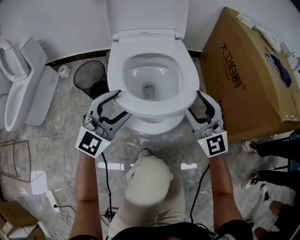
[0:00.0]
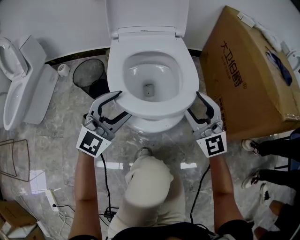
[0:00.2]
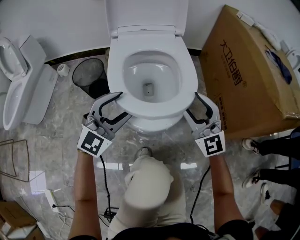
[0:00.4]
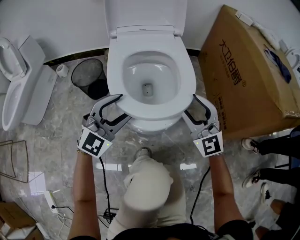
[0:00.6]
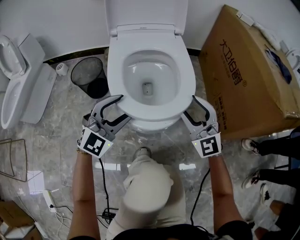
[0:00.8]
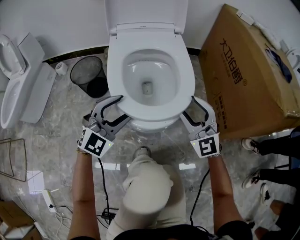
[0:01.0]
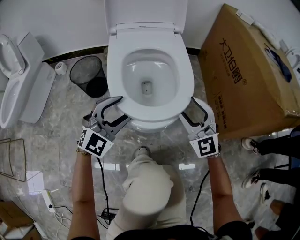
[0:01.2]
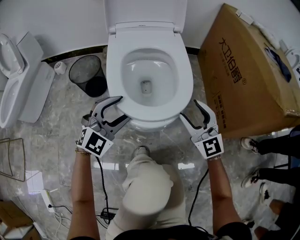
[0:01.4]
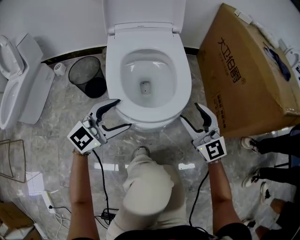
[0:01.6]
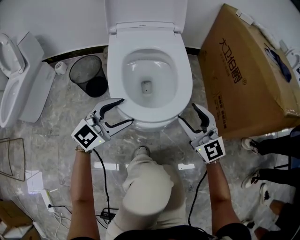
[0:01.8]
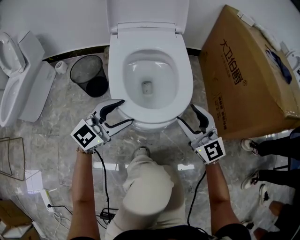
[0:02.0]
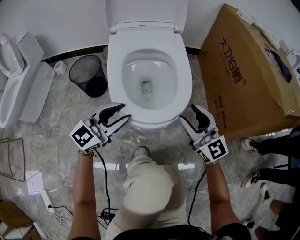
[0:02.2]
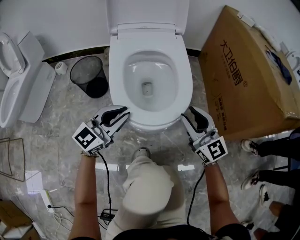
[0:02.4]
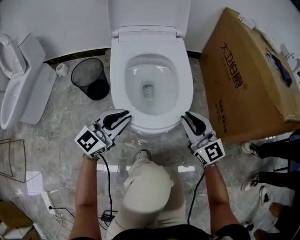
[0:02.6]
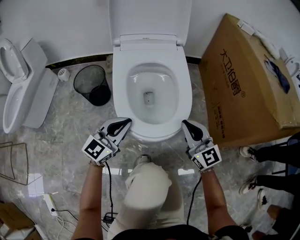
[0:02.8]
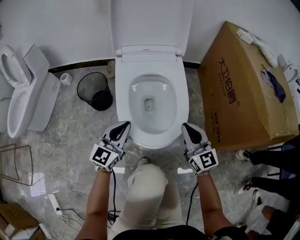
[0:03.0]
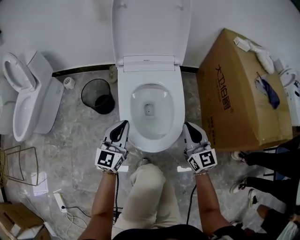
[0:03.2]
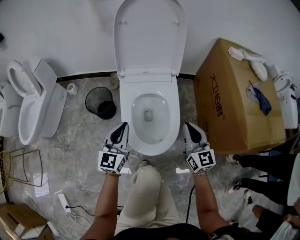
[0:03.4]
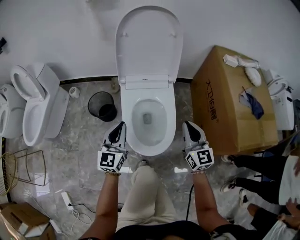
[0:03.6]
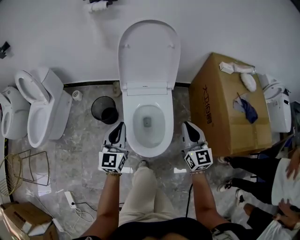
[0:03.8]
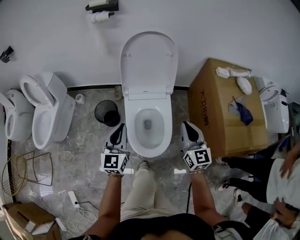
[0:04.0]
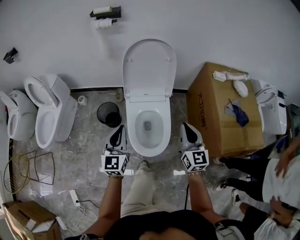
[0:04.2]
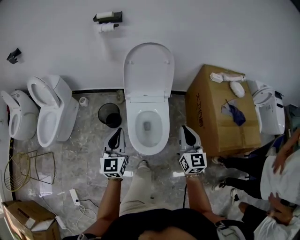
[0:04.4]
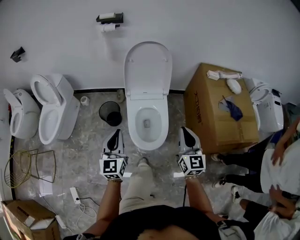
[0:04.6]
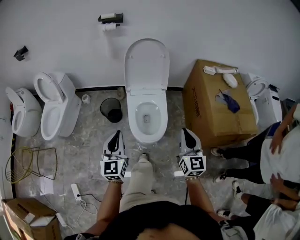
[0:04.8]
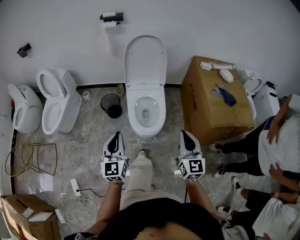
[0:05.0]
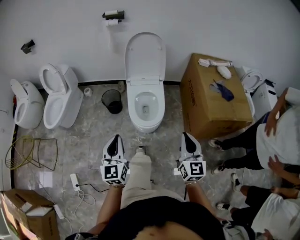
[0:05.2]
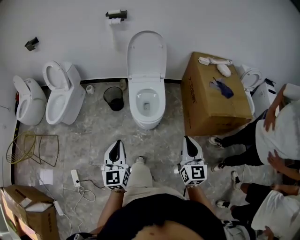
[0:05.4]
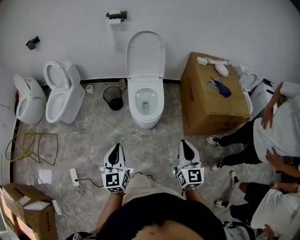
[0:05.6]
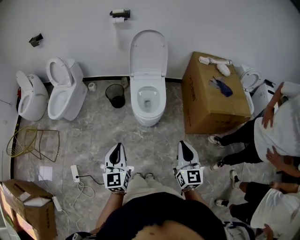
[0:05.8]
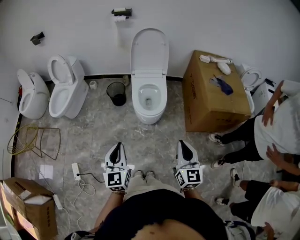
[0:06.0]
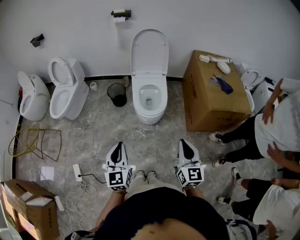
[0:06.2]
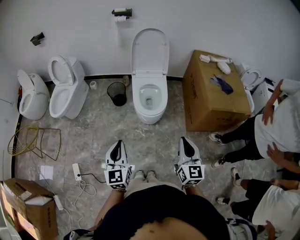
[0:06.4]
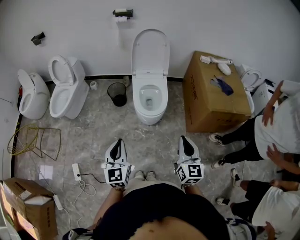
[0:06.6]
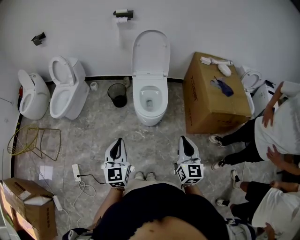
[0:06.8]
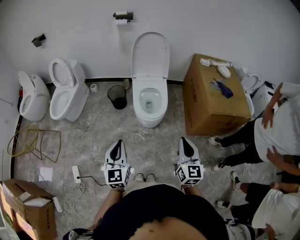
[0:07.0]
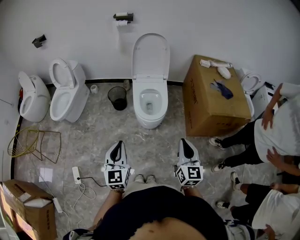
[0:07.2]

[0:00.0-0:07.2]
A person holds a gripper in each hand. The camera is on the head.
0:00.0 to 0:01.4: Both grippers travel together downward, some 10 cm.
0:01.4 to 0:02.8: The right gripper closes up. The left gripper changes its angle by roughly 40 degrees, and closes its fingers.
0:02.8 to 0:04.4: The two grippers go some 50 cm upward. The right gripper turns by approximately 20 degrees. Meanwhile the left gripper swivels some 40 degrees.
0:04.4 to 0:05.8: The two grippers travel together, backward, about 40 cm.
0:05.8 to 0:07.2: There are only small adjustments of the grippers.

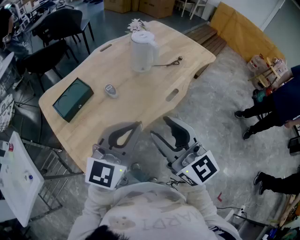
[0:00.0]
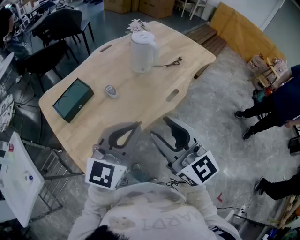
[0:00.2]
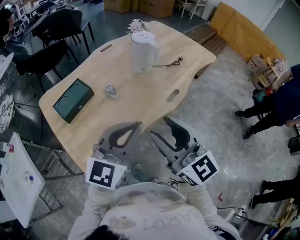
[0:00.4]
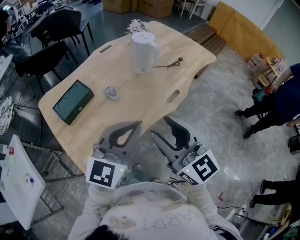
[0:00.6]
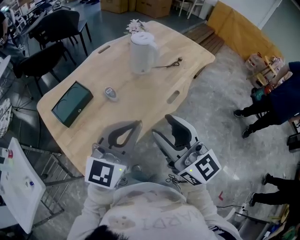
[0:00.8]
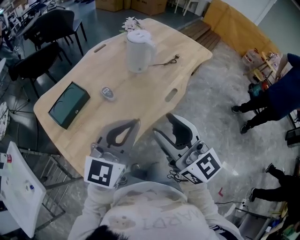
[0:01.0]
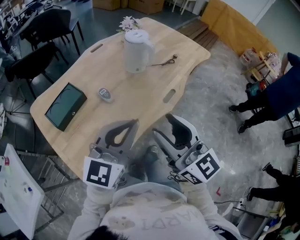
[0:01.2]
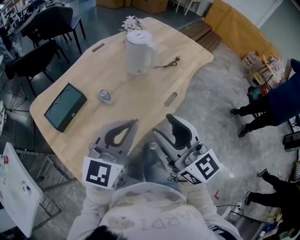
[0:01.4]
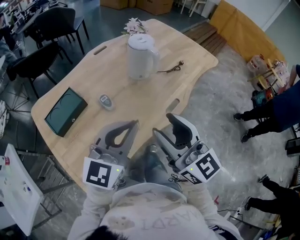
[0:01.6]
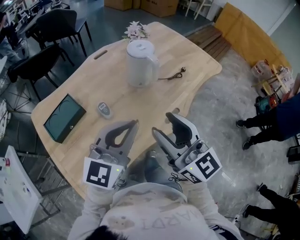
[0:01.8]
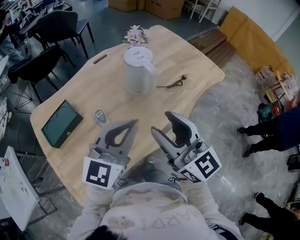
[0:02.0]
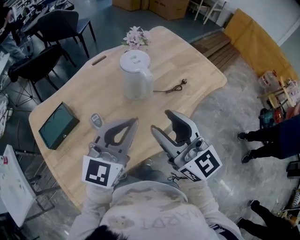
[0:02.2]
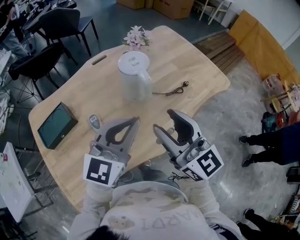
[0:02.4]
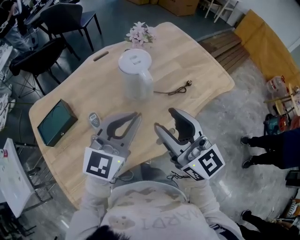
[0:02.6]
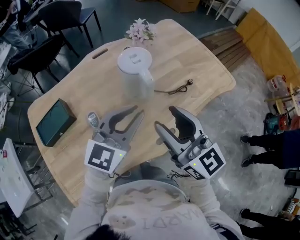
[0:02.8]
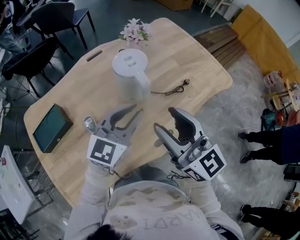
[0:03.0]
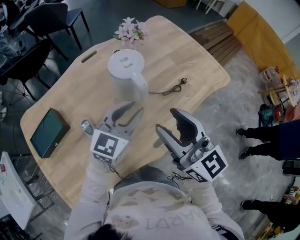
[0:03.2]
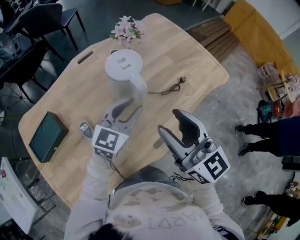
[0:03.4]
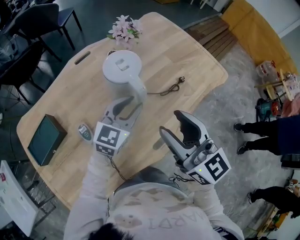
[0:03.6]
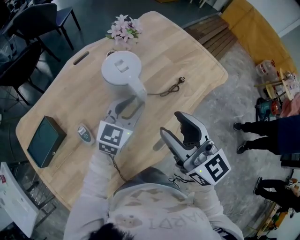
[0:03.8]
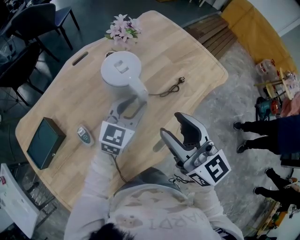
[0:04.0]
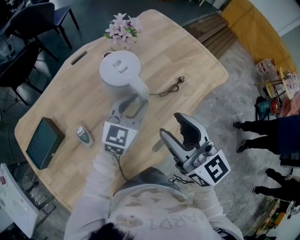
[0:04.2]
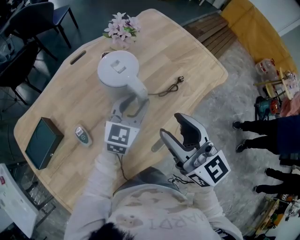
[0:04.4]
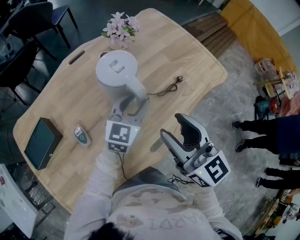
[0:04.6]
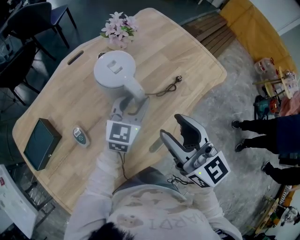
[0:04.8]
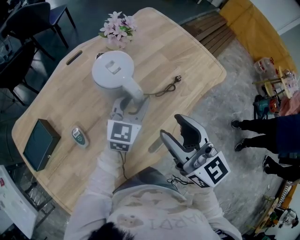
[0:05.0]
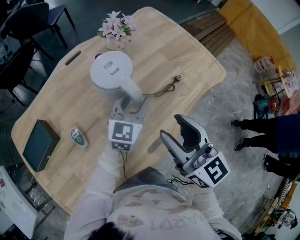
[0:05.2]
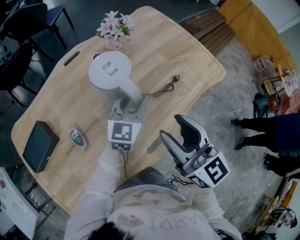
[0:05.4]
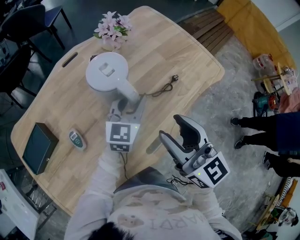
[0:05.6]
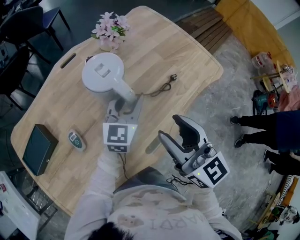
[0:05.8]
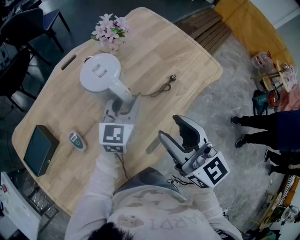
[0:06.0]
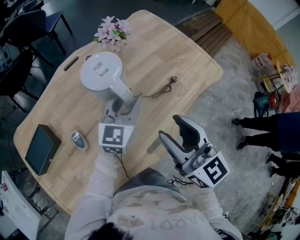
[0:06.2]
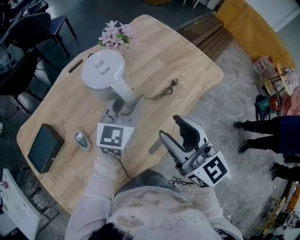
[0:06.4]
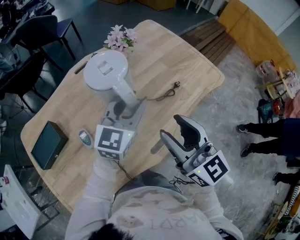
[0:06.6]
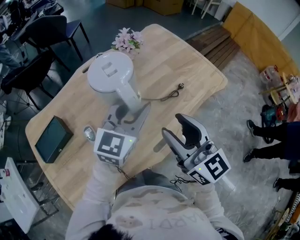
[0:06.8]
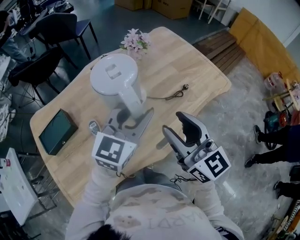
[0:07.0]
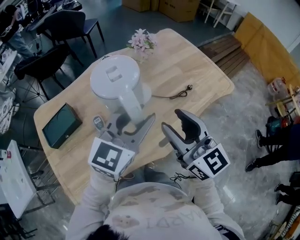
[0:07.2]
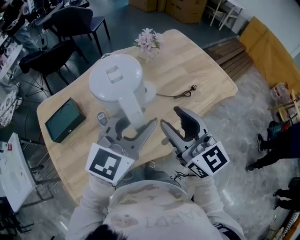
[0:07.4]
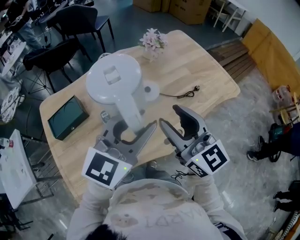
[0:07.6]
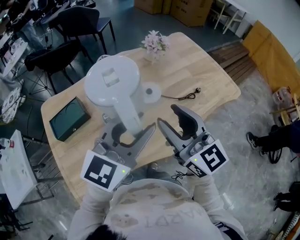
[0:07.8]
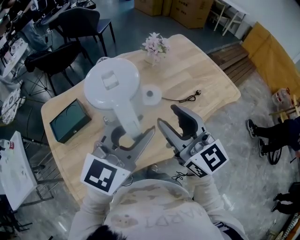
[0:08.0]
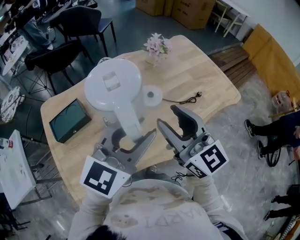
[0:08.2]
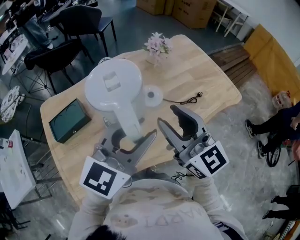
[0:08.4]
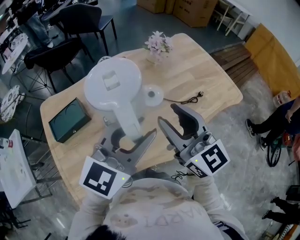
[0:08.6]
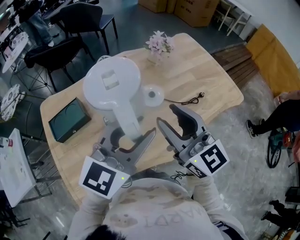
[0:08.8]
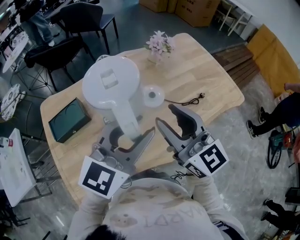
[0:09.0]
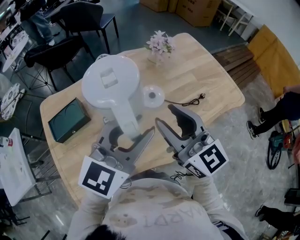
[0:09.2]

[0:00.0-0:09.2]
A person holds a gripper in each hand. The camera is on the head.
0:00.0 to 0:01.6: The two grippers go approximately 10 cm forward.
0:01.6 to 0:03.0: The grippers both shift forward and to the right by about 25 cm.
0:03.0 to 0:04.6: The left gripper is displaced forward, downward and to the right by about 15 cm; the right gripper moves roughly 5 cm.
0:04.6 to 0:06.2: The grippers move only a little.
0:06.2 to 0:07.6: The right gripper moves to the left, backward and upward, roughly 15 cm; the left gripper goes approximately 25 cm backward and upward.
0:07.6 to 0:09.2: The right gripper shifts by some 5 cm.

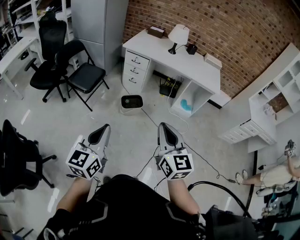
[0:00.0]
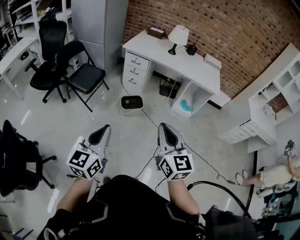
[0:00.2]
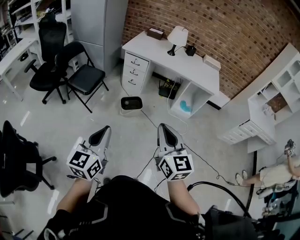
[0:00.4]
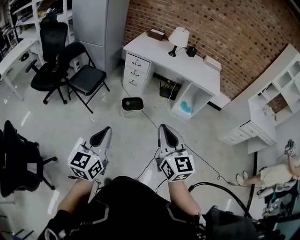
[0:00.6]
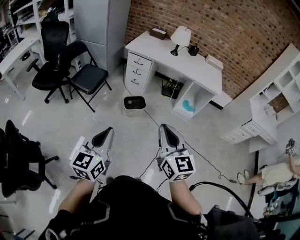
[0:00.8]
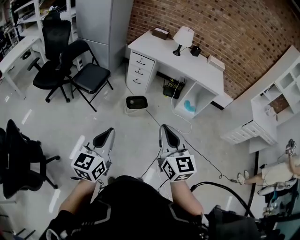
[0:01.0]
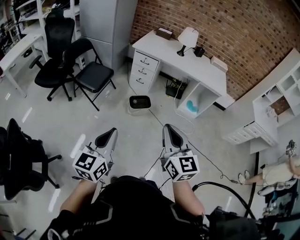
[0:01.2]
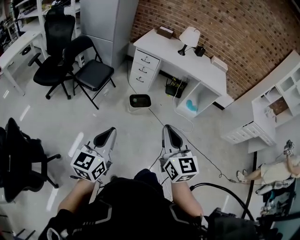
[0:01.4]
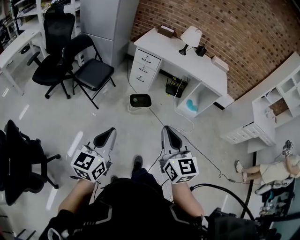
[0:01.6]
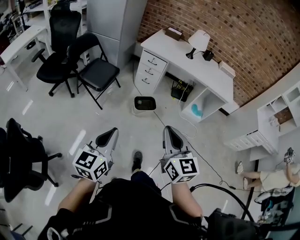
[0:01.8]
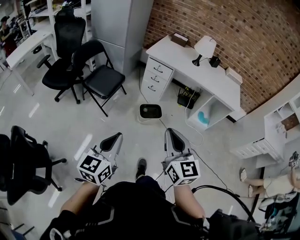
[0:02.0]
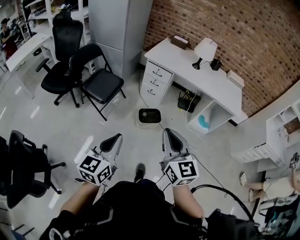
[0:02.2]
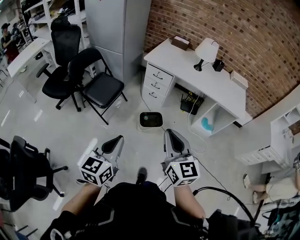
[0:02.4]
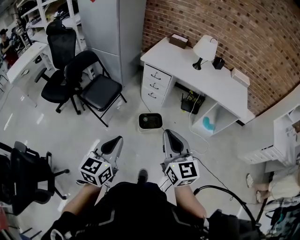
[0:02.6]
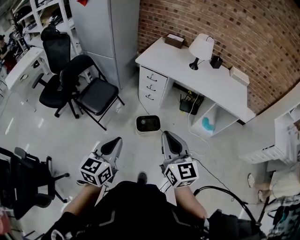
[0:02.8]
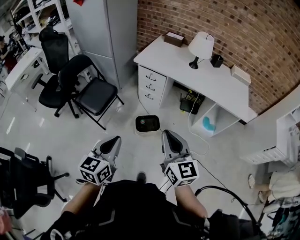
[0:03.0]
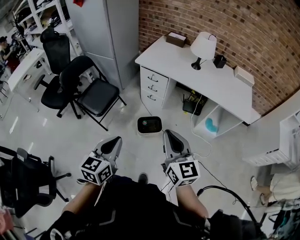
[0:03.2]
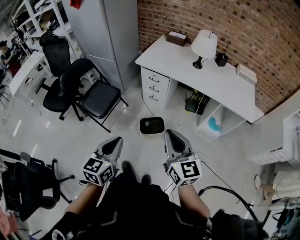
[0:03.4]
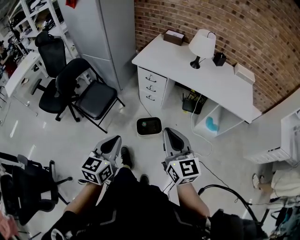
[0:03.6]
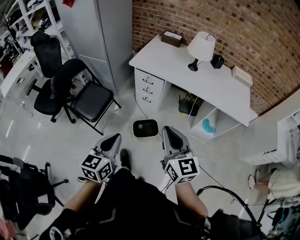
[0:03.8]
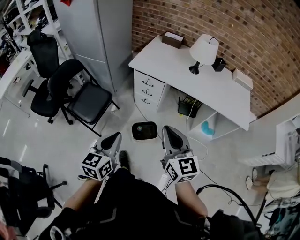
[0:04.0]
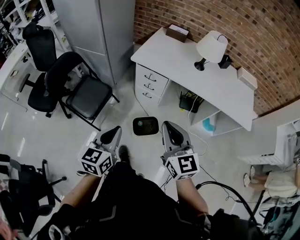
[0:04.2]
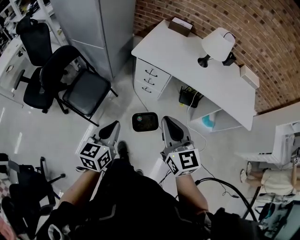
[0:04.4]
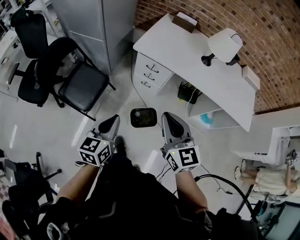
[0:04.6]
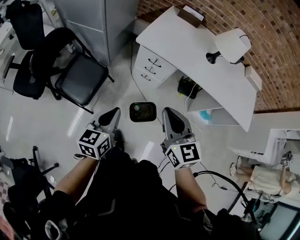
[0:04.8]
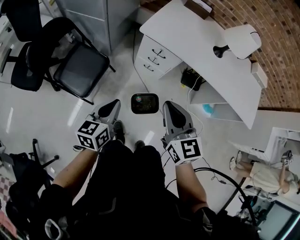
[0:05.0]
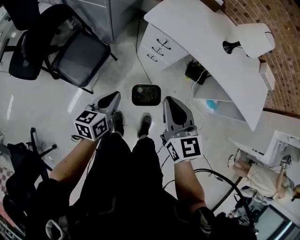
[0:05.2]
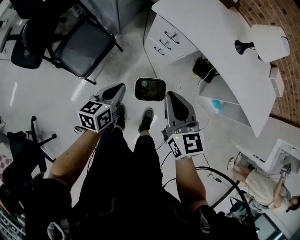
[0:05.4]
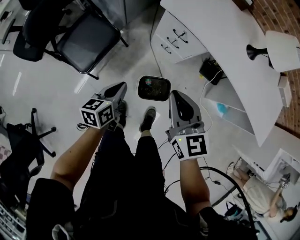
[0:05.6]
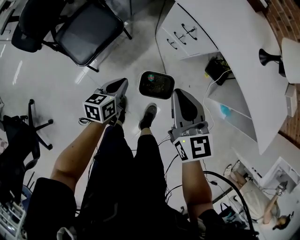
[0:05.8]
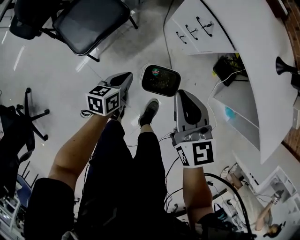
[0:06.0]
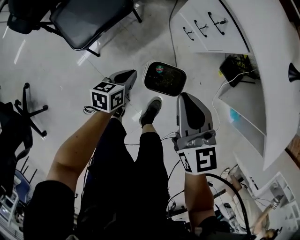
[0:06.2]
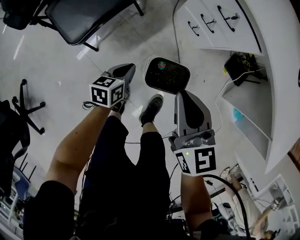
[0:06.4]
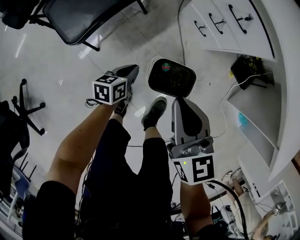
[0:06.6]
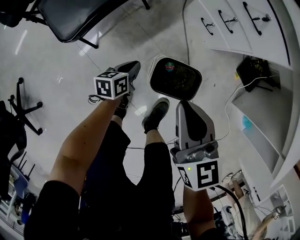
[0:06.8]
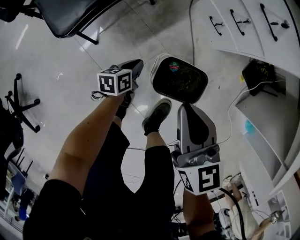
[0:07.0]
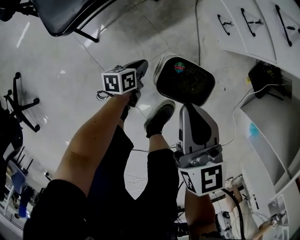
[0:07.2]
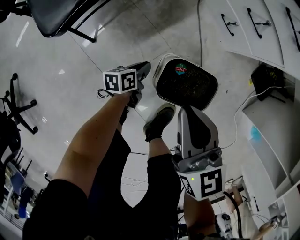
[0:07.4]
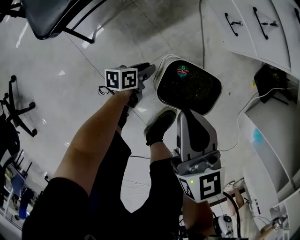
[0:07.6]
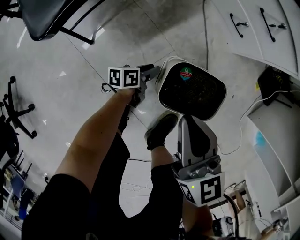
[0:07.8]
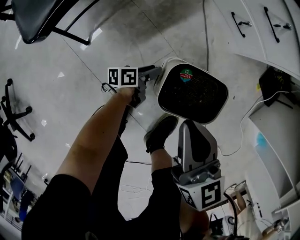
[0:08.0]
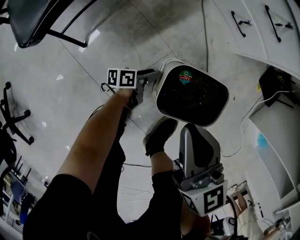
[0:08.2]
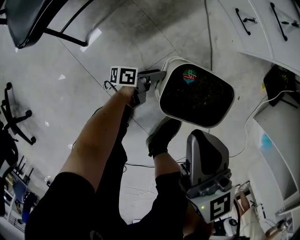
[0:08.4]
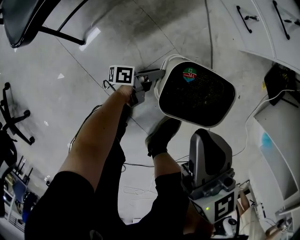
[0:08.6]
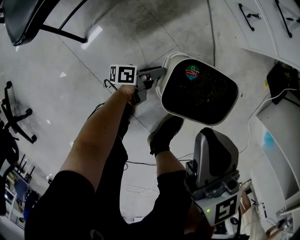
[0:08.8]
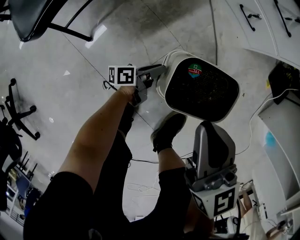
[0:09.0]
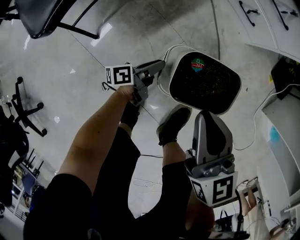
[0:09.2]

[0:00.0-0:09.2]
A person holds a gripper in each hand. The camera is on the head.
0:00.0 to 0:01.6: Both grippers move to the left, roughly 10 cm.
0:01.6 to 0:03.0: The right gripper shifts about 30 cm forward. The left gripper heads forward and to the right, covering roughly 30 cm.
0:03.0 to 0:04.6: Both grippers travel together forward, some 25 cm.
0:04.6 to 0:06.2: The grippers both shift downward by approximately 35 cm. The right gripper turns by approximately 20 degrees. Meanwhile the left gripper rotates roughly 30 degrees.
0:06.2 to 0:07.6: Both grippers move downward, approximately 35 cm. The left gripper rotates roughly 20 degrees, and opens.
0:07.6 to 0:09.2: The left gripper moves approximately 10 cm downward and comes back, and rotates some 20 degrees.
